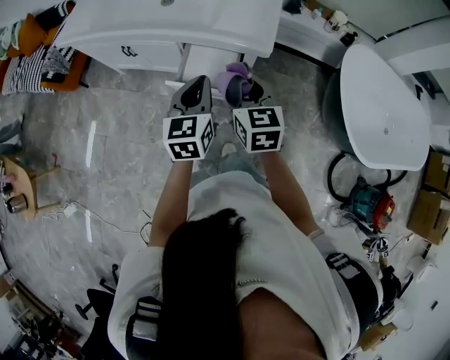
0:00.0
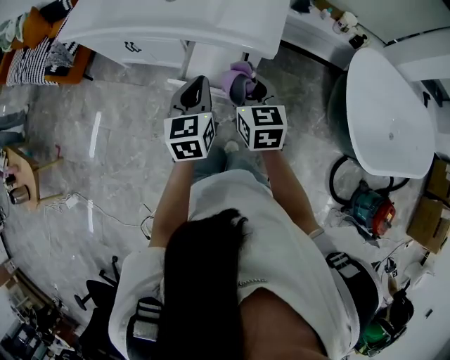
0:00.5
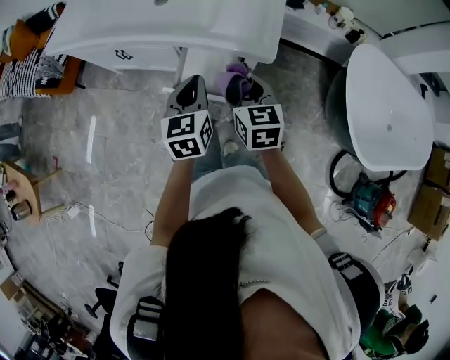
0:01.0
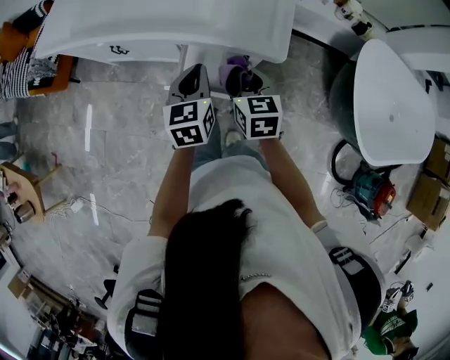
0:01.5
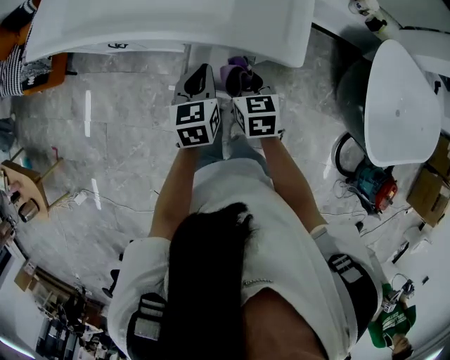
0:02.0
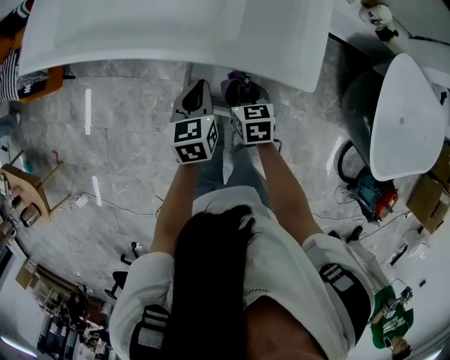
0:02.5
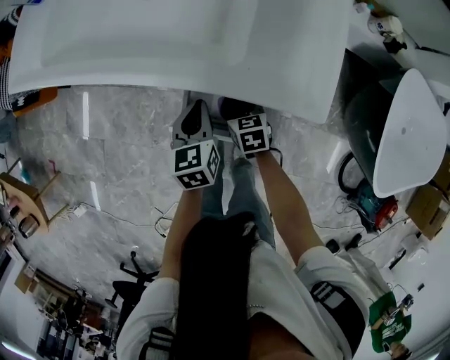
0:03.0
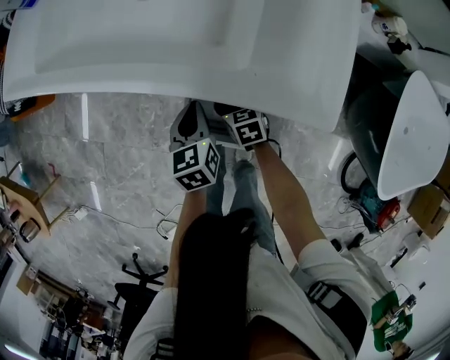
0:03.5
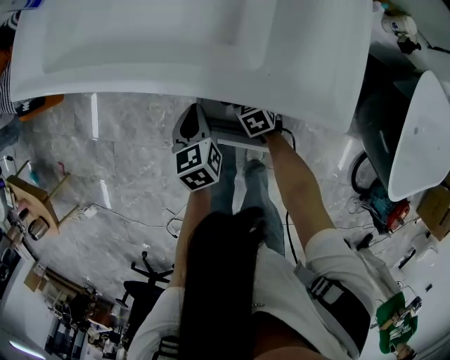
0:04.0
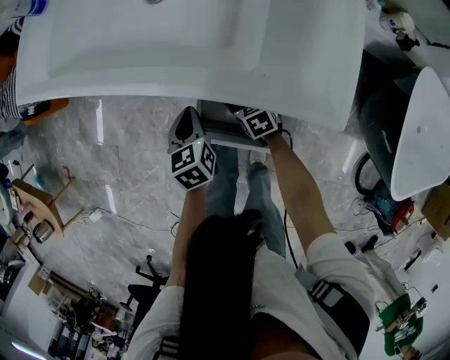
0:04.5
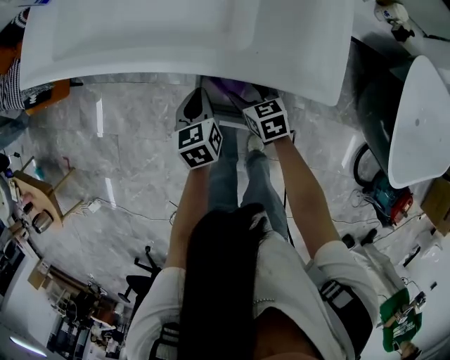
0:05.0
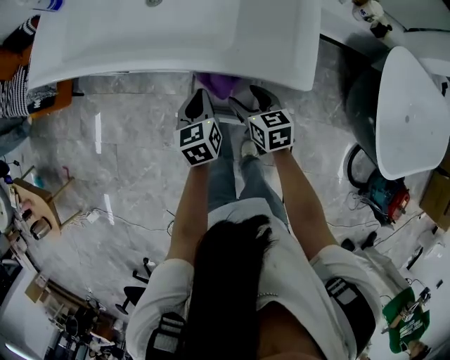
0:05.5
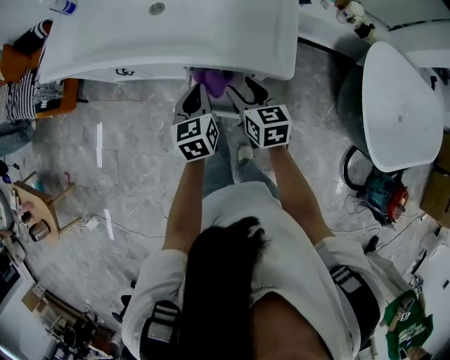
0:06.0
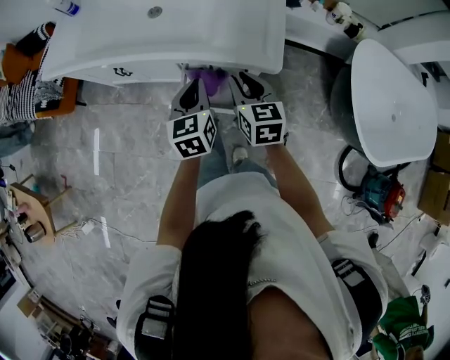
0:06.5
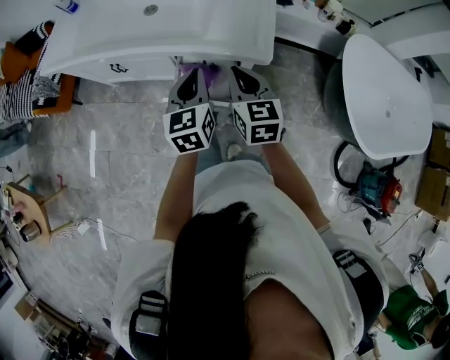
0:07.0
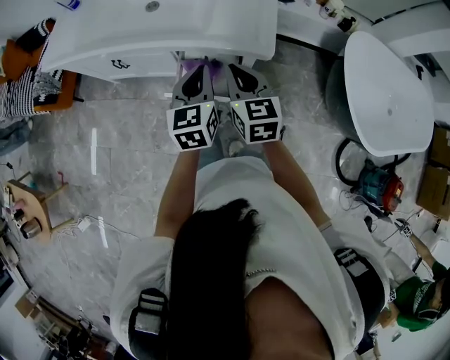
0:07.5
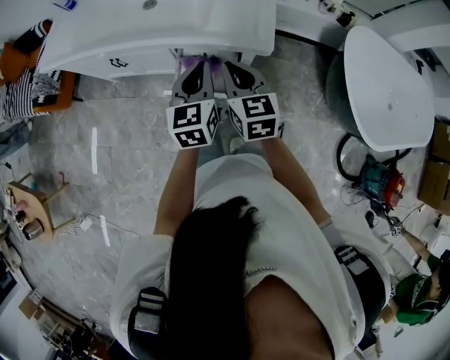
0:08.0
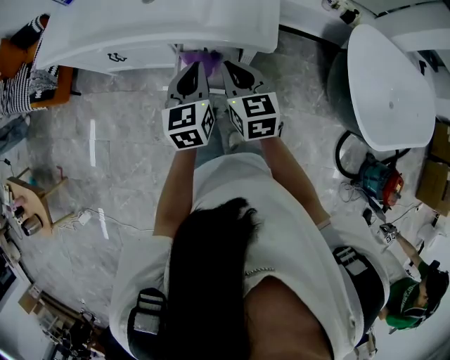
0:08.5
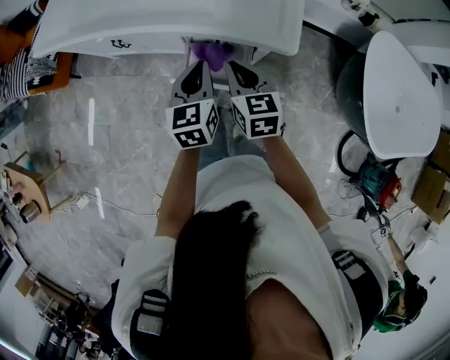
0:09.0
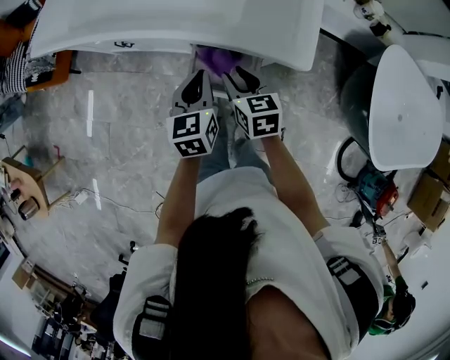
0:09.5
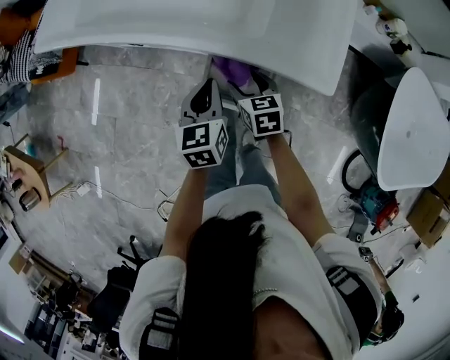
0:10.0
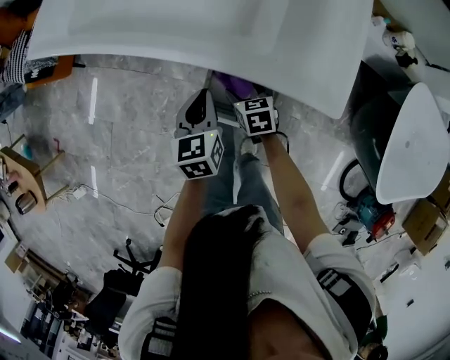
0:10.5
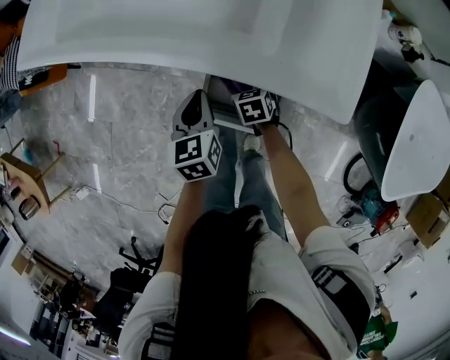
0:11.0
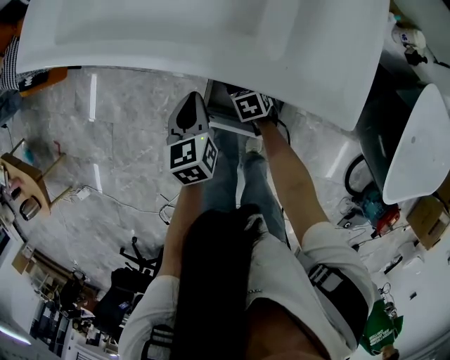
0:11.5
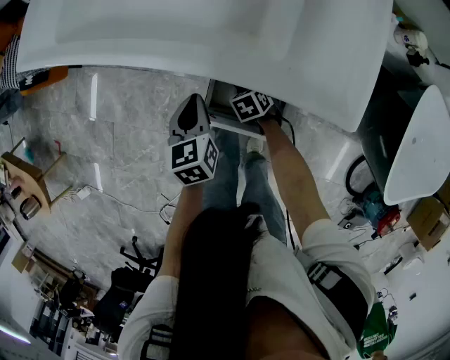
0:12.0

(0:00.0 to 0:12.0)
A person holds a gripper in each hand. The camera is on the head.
0:00.0 - 0:02.0: The left gripper moves forward and downward, roughly 20 cm. The right gripper travels downward and forward by some 20 cm.
0:02.0 - 0:04.0: The right gripper travels downward by some 25 cm, and changes its angle by approximately 30 degrees. The left gripper moves downward, to the left and forward, approximately 15 cm.
0:04.0 - 0:06.0: The right gripper travels upward by some 30 cm, and rotates approximately 30 degrees, while the left gripper is displaced upward and backward by about 15 cm.
0:06.0 - 0:08.0: The grippers both shift upward and backward by approximately 10 cm. The right gripper closes its fingers.
0:08.0 - 0:10.0: The right gripper shifts some 25 cm downward and forward, rotates approximately 30 degrees, and opens, while the left gripper heads downward, to the left and forward, covering approximately 20 cm, and swivels about 20 degrees.
0:10.0 - 0:12.0: The right gripper shifts approximately 20 cm downward, and rotates about 30 degrees. The left gripper is displaced downward and to the left by approximately 10 cm.

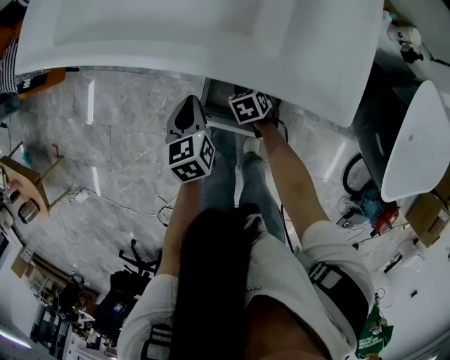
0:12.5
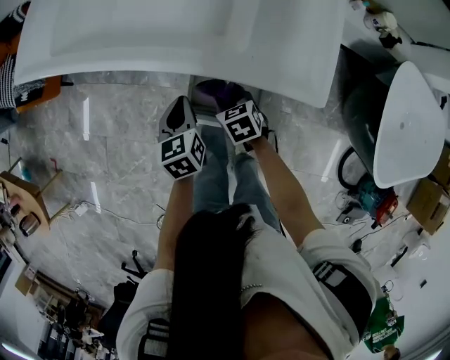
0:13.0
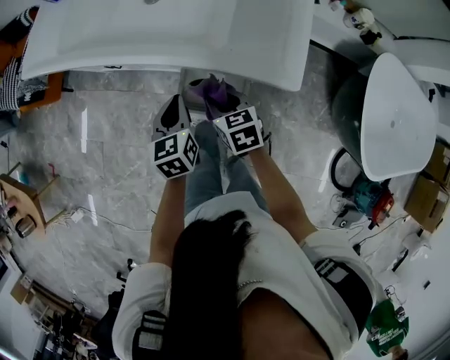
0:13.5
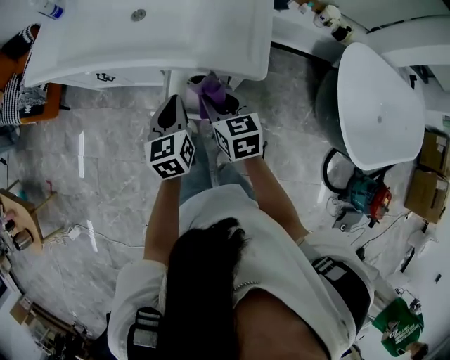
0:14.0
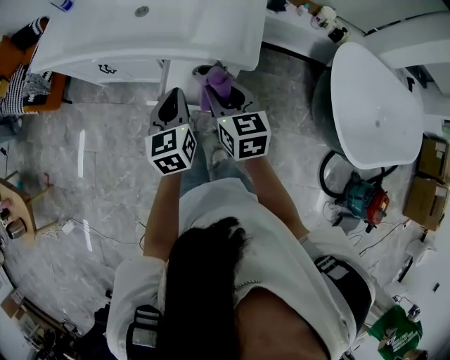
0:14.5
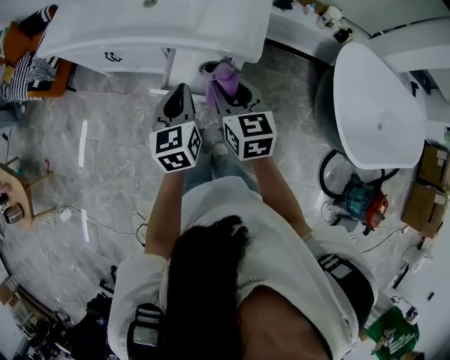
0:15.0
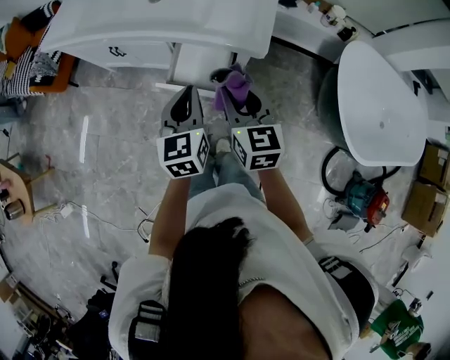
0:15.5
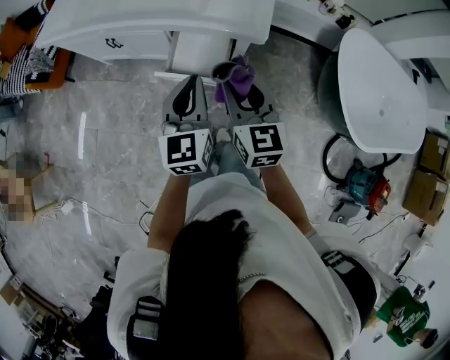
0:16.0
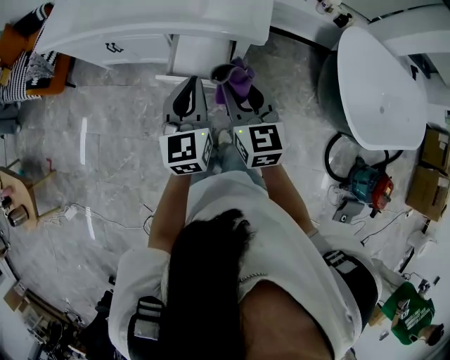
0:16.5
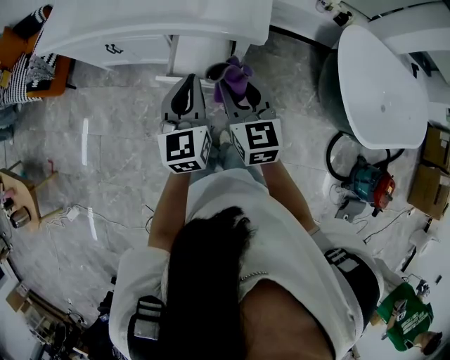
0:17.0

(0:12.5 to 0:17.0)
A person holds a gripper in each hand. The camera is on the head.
0:12.5 - 0:14.5: The right gripper travels upward by some 40 cm, and tilts its fingers approximately 50 degrees upward. The left gripper shifts some 25 cm upward, backward and to the right, and swivels some 20 degrees.
0:14.5 - 0:17.0: The left gripper is displaced backward and upward by roughly 10 cm, while the right gripper moves backward, roughly 5 cm.

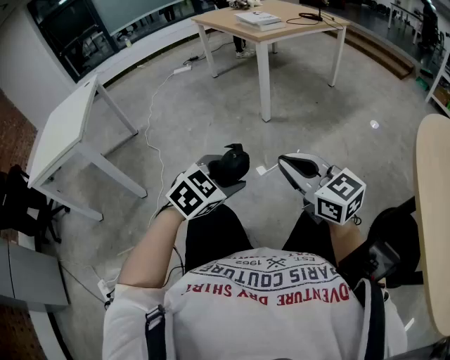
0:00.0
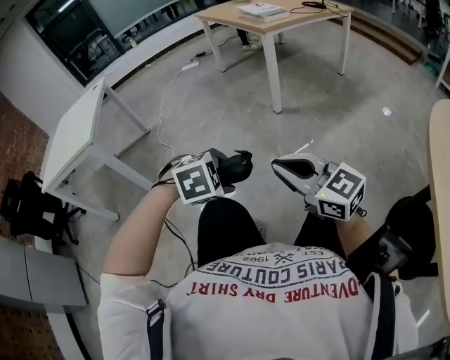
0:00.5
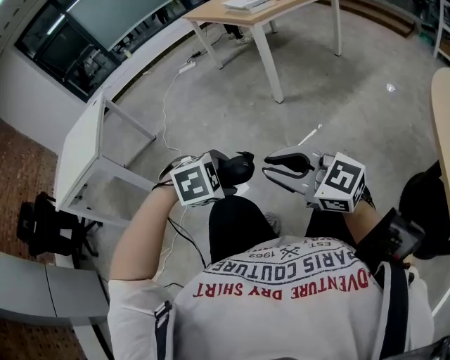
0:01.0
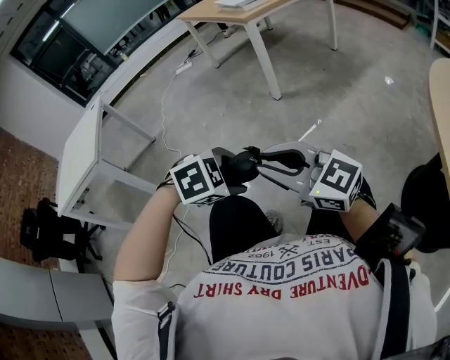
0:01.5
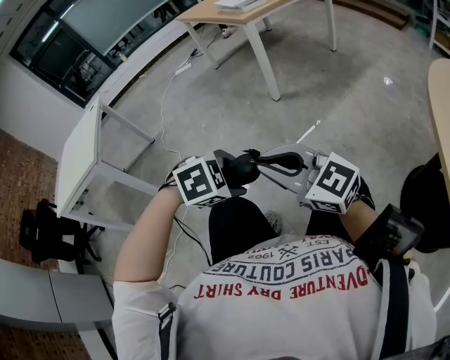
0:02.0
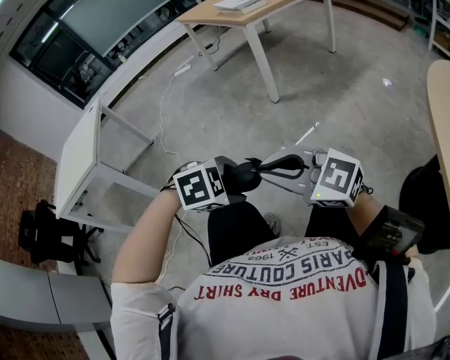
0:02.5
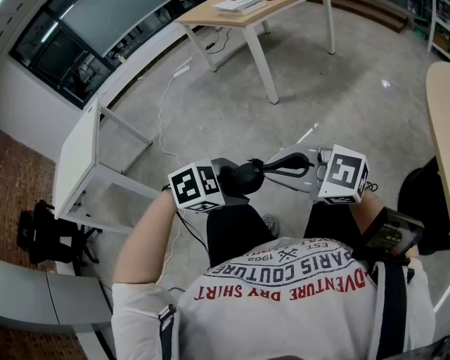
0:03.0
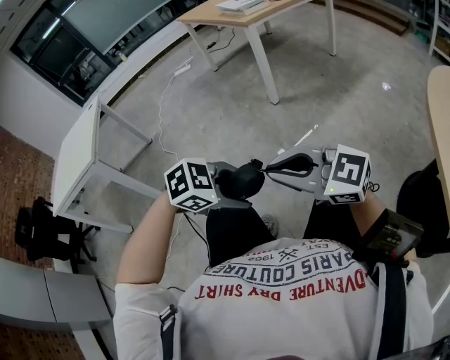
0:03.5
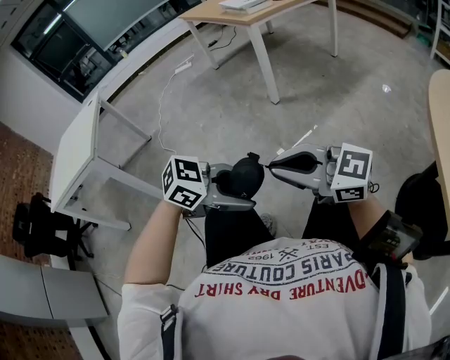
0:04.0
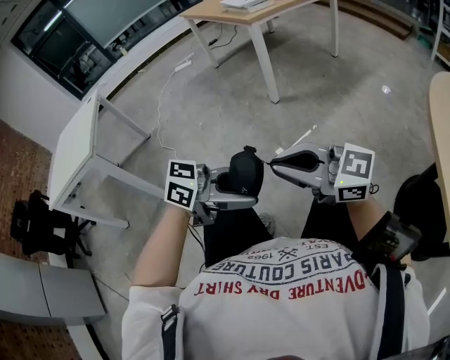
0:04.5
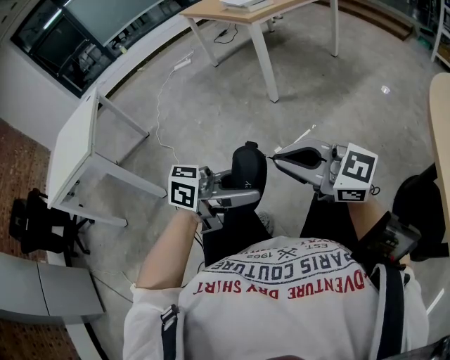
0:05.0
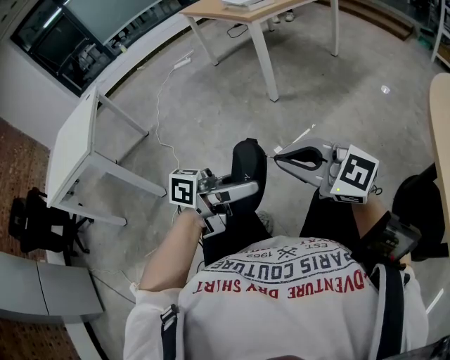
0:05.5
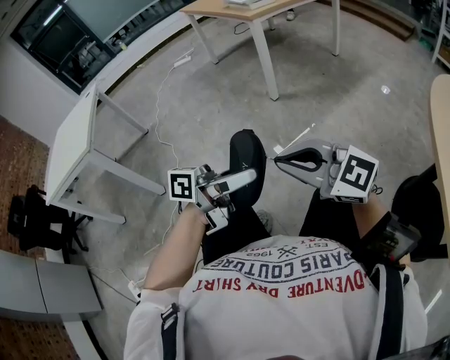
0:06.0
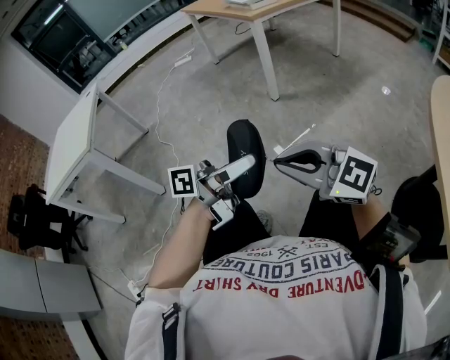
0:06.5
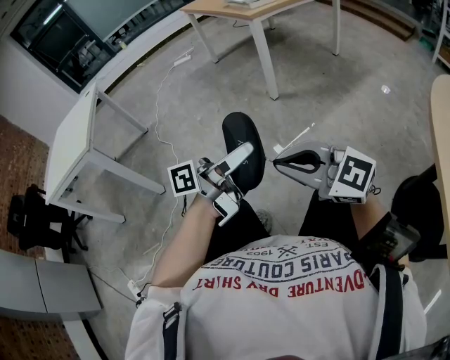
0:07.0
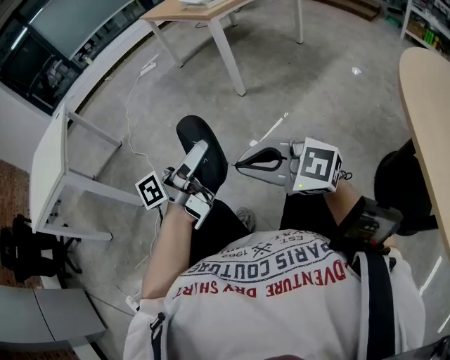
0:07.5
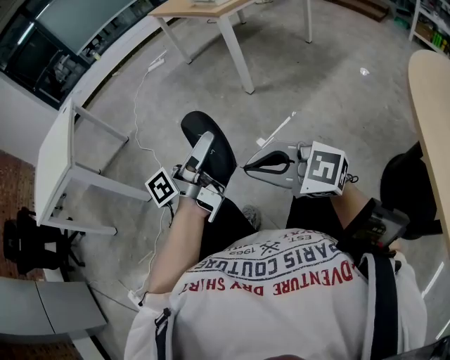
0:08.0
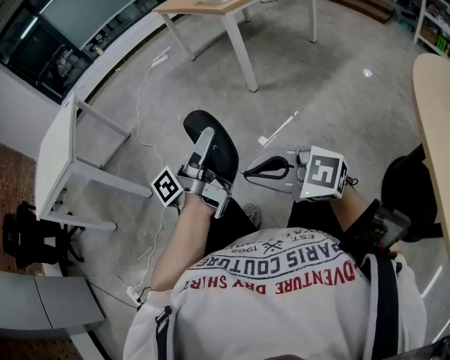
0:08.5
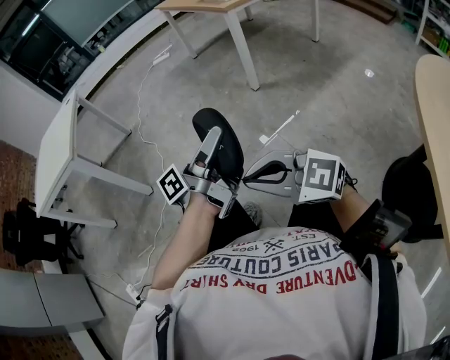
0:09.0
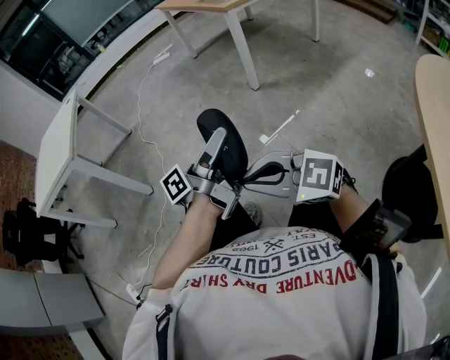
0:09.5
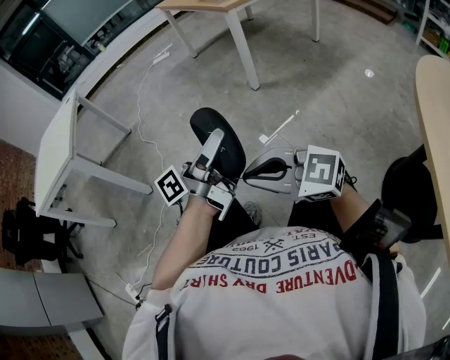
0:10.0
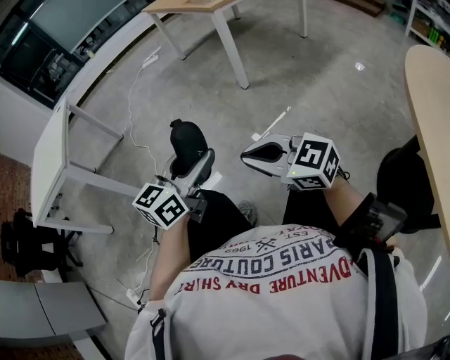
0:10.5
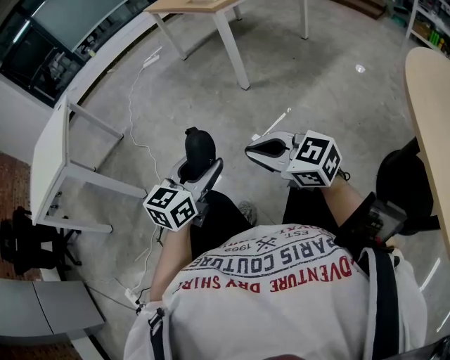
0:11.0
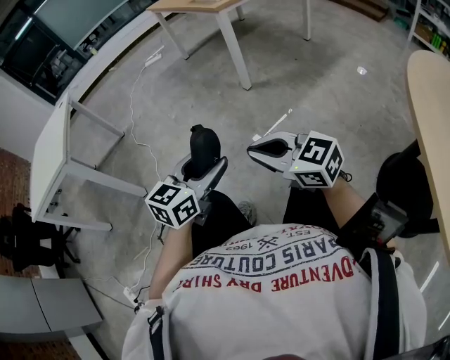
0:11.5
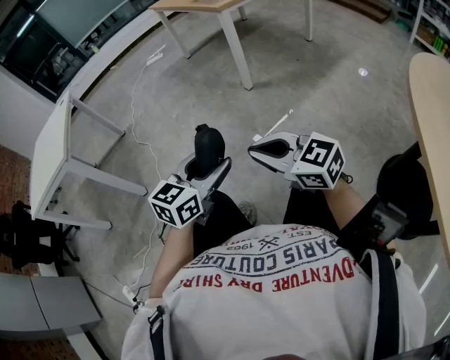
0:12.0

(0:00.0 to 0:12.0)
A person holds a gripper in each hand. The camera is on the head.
0:00.0 - 0:02.0: The left gripper tilts its fingers some 30 degrees downward, while the right gripper changes place by approximately 5 cm.
0:02.0 - 0:04.0: The left gripper ends up about 5 cm from where it was, and points its fingers about 40 degrees further upward.
0:04.0 - 0:06.0: The left gripper goes roughly 5 cm upward, and points its fingers about 40 degrees further upward.
0:06.0 - 0:08.0: The left gripper ends up about 10 cm from where it was, and rotates approximately 30 degrees.
0:08.0 - 0:10.0: The grippers make only small movements.
0:10.0 - 0:12.0: The right gripper travels forward by about 5 cm, and rotates approximately 20 degrees. The left gripper shifts some 10 cm downward, and twists roughly 60 degrees clockwise, seen from behind.
